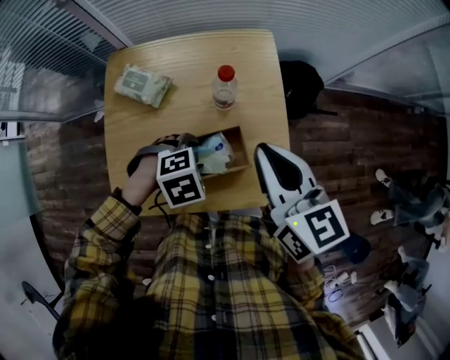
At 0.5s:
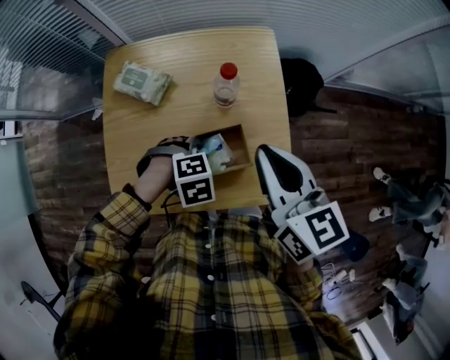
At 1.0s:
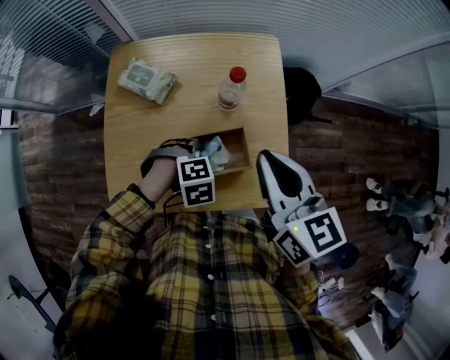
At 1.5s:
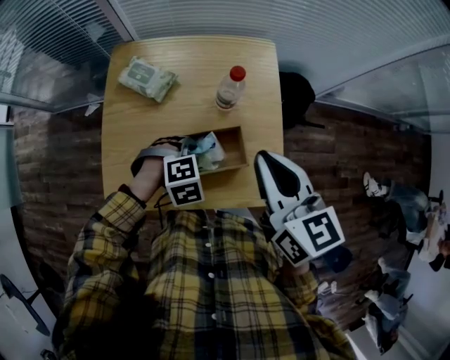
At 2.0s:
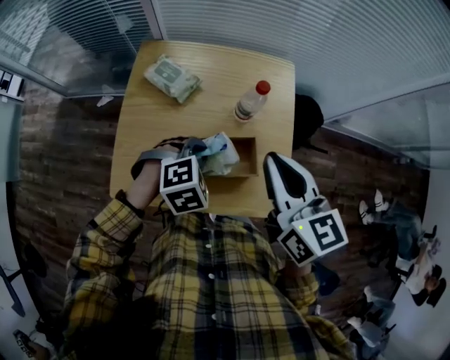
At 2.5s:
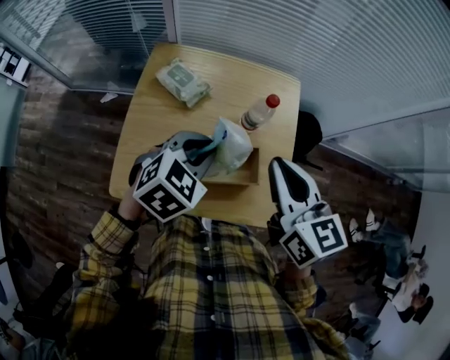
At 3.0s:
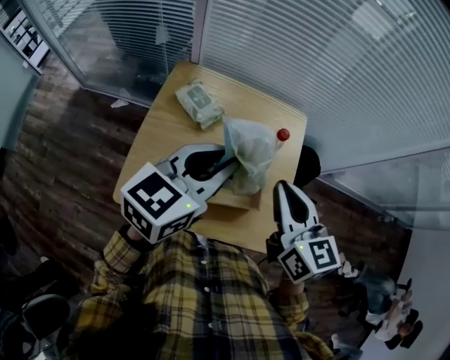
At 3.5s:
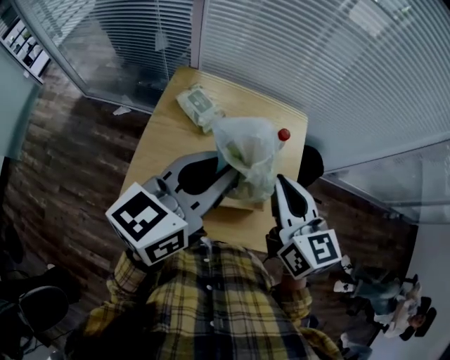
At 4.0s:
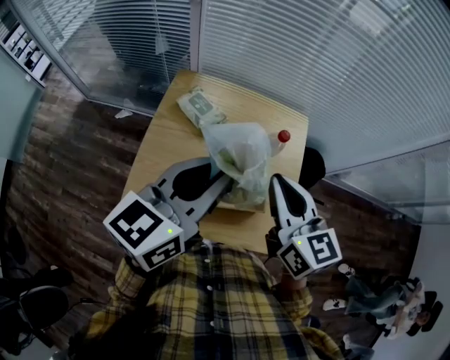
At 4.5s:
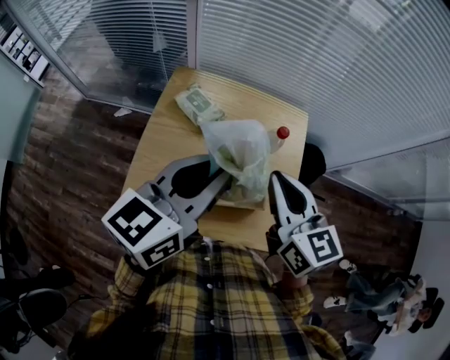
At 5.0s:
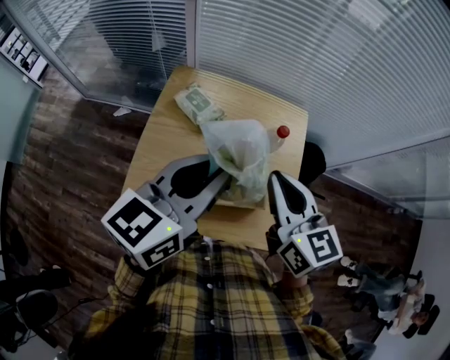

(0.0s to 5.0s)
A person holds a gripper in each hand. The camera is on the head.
0.0s - 2.5s: The left gripper travels upward by roughly 15 cm, tips its fingers upward by roughly 30 degrees, and closes up. Meanwhile the right gripper moves approximately 5 cm.
2.5s - 5.0s: The left gripper goes approximately 15 cm upward, and angles its fingers upward, by approximately 40 degrees.

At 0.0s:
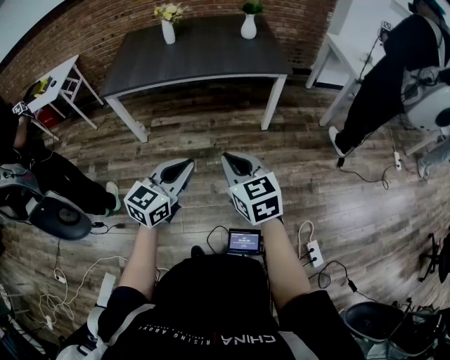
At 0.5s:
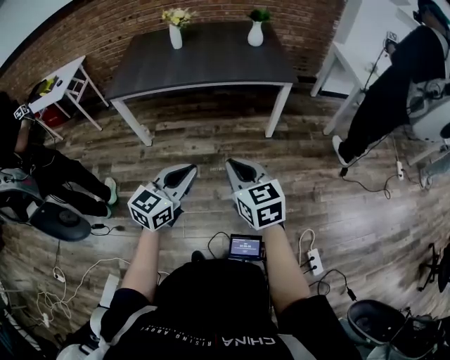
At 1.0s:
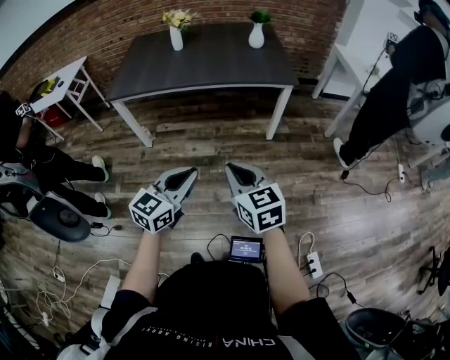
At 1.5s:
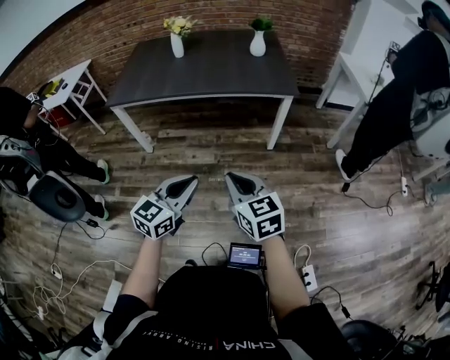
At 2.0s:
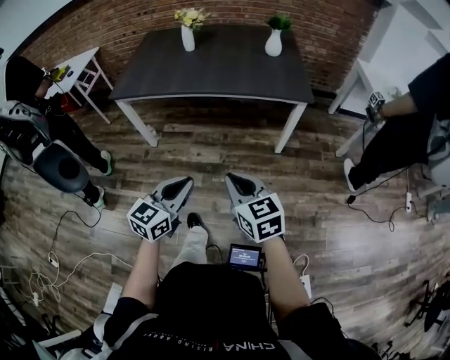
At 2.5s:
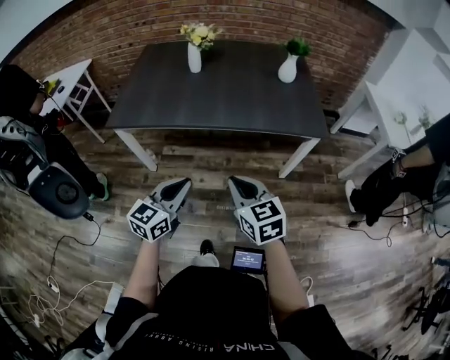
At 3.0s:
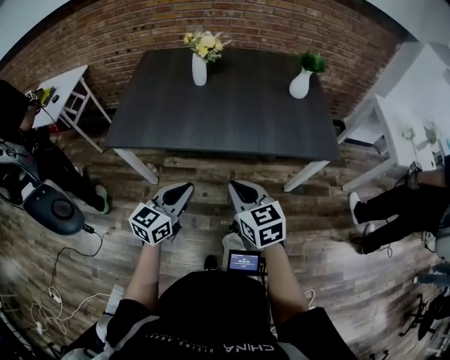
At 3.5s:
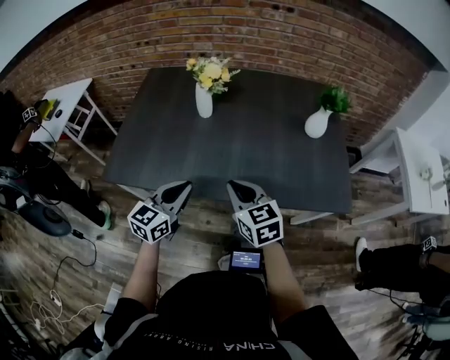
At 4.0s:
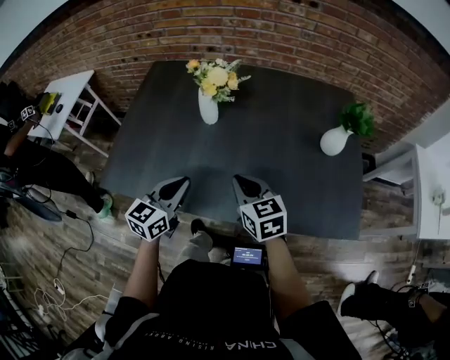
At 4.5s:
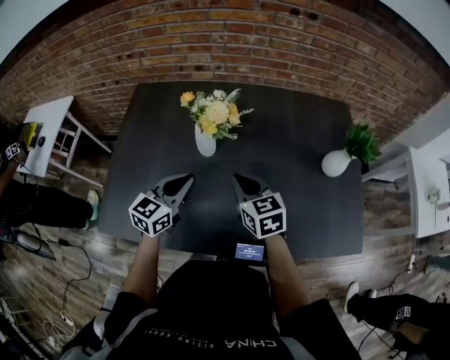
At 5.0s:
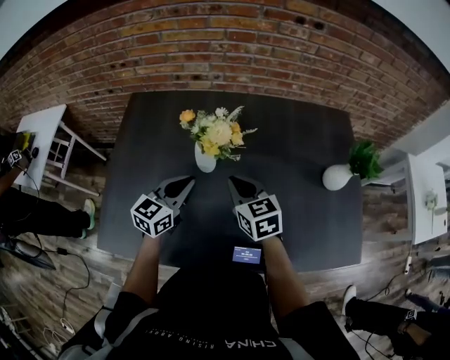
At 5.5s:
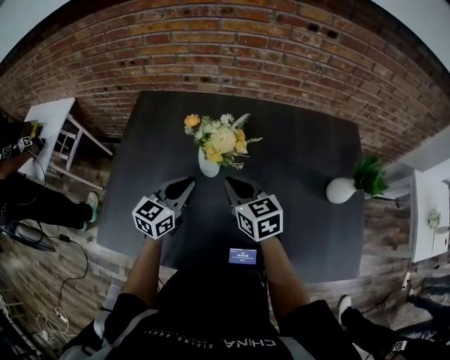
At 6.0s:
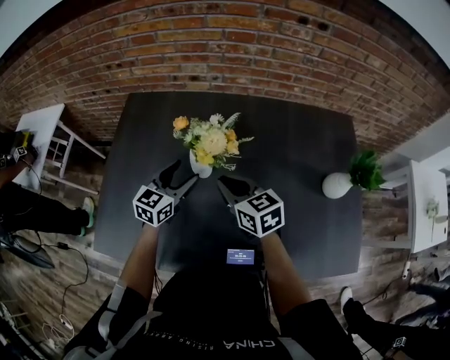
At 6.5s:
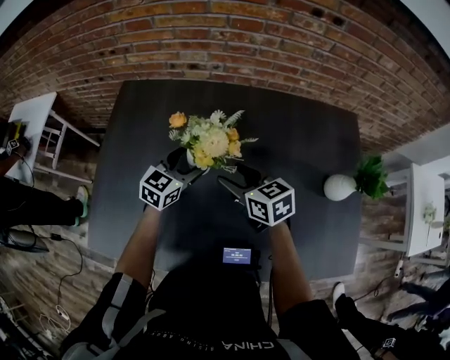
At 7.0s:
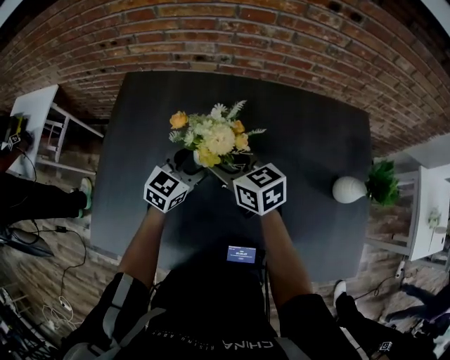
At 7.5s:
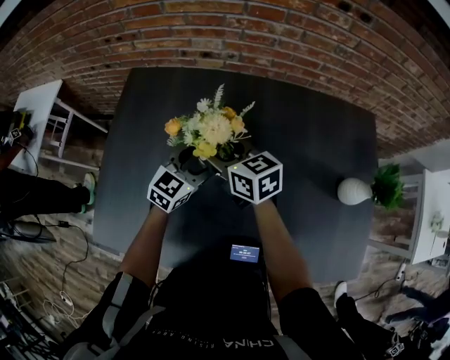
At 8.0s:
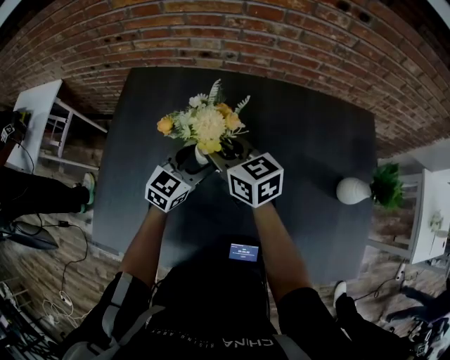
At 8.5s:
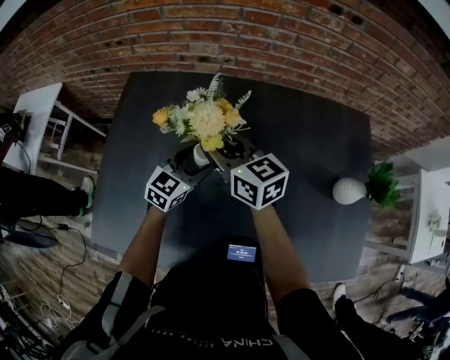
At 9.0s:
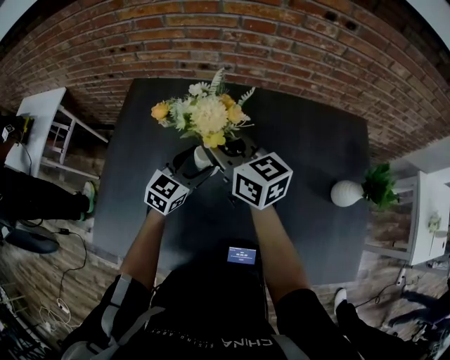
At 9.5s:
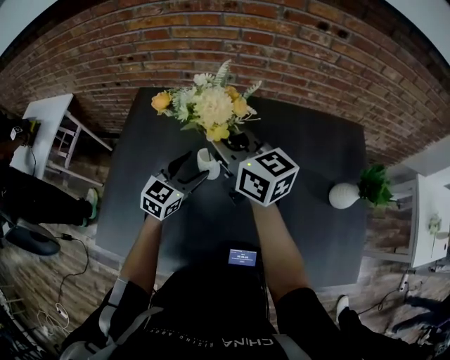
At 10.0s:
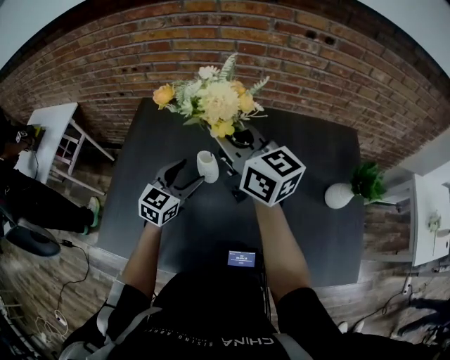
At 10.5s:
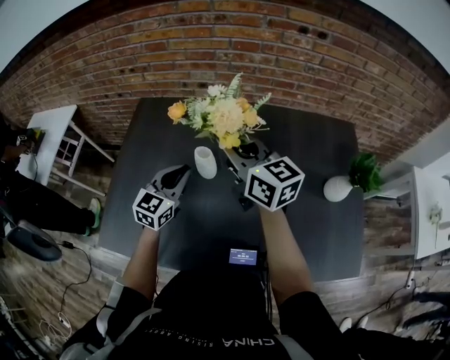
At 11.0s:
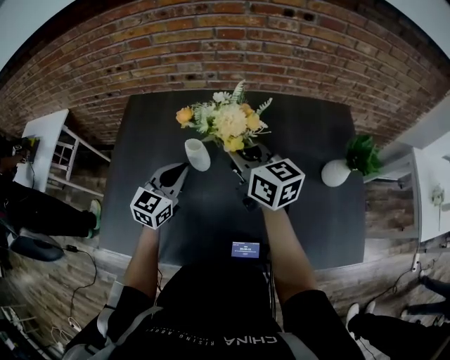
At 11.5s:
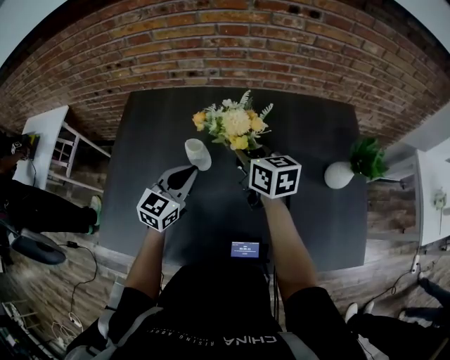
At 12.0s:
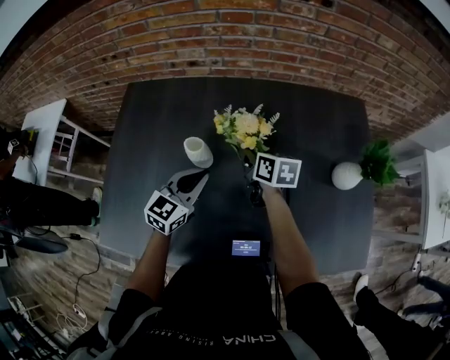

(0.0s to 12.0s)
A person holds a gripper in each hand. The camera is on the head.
0.0s - 2.0s: Both grippers travel together forward, roughly 10 cm.
2.0s - 4.0s: Both grippers are carried forward, approximately 70 cm.
4.0s - 6.0s: Both grippers move forward, some 25 cm. The left gripper opens its fingers.
6.0s - 8.0s: The right gripper travels forward and to the left by roughly 10 cm, and opens its fingers, while the left gripper moves some 5 cm.
8.0s - 10.0s: The right gripper moves upward, about 20 cm, and swivels some 20 degrees; the left gripper travels upward and backward by about 10 cm.
10.0s - 12.0s: The right gripper shifts roughly 30 cm downward and to the right, and angles its fingers downward, by some 40 degrees, while the left gripper moves to the right, roughly 5 cm, and closes up.

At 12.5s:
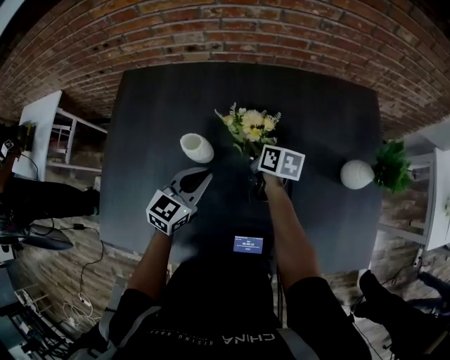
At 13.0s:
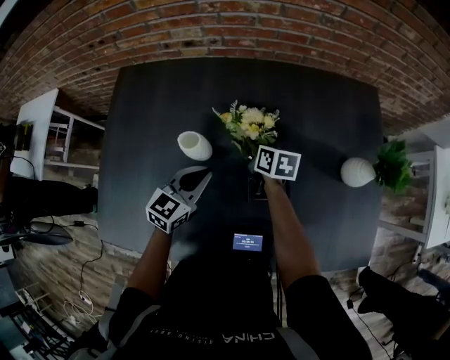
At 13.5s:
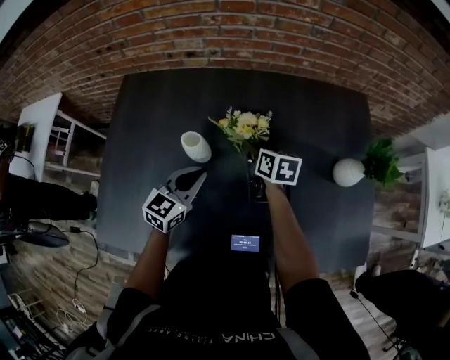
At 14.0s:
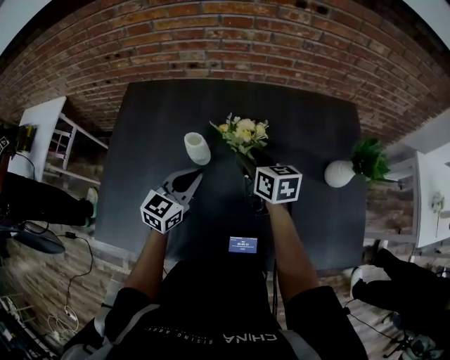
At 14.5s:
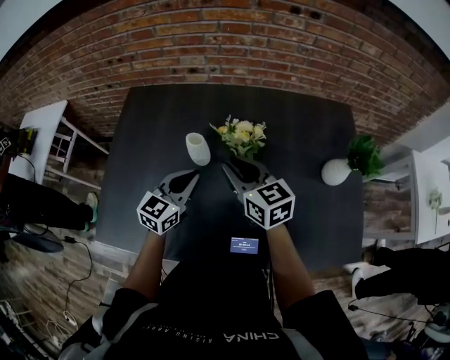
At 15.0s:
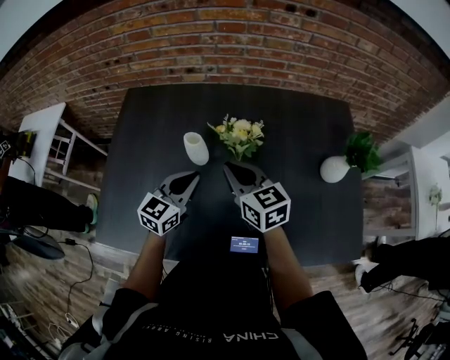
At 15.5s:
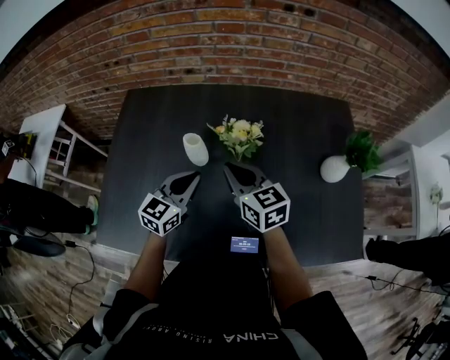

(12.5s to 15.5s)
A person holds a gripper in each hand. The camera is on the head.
12.5s - 14.0s: The left gripper changes place by approximately 5 cm. Meanwhile the right gripper moves upward and backward, about 15 cm, rotates about 30 degrees, and opens up.
14.0s - 15.5s: The right gripper heads backward and upward, covering approximately 10 cm, and closes.

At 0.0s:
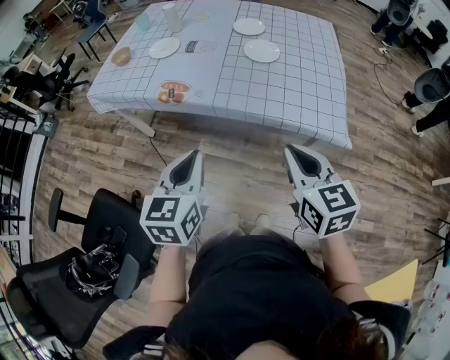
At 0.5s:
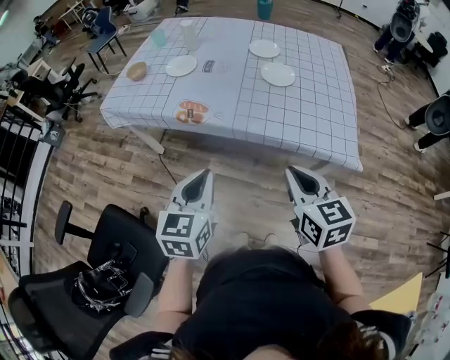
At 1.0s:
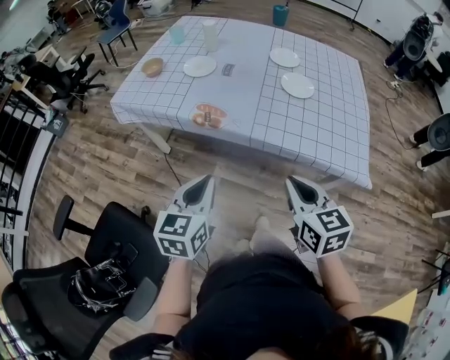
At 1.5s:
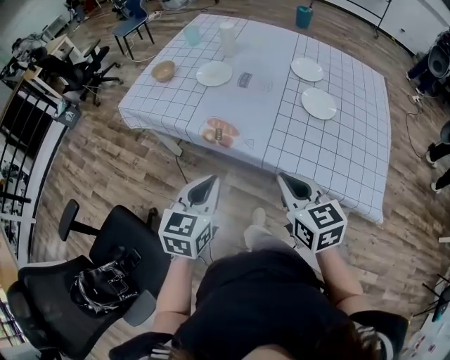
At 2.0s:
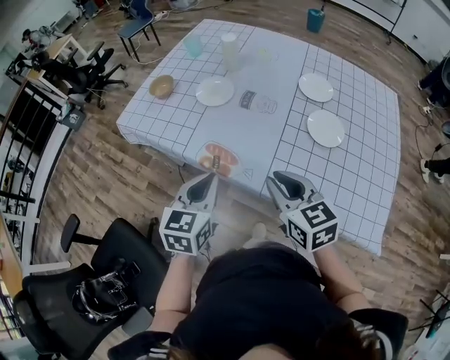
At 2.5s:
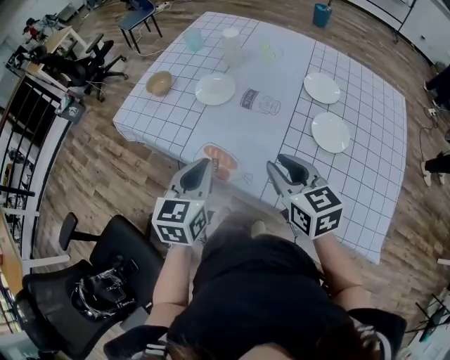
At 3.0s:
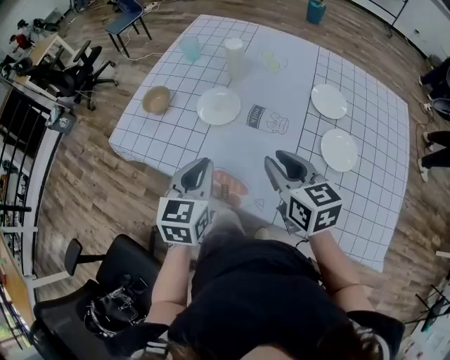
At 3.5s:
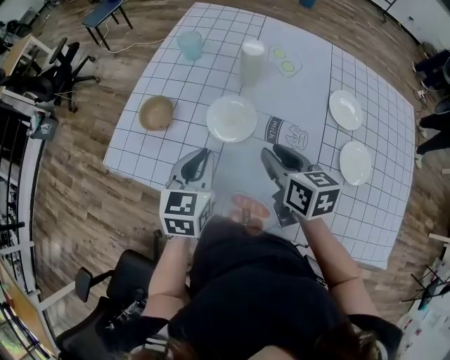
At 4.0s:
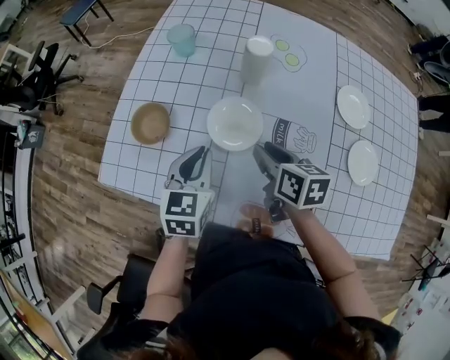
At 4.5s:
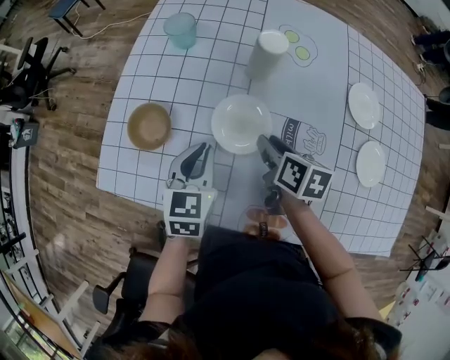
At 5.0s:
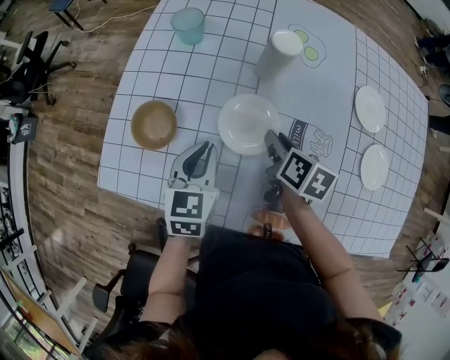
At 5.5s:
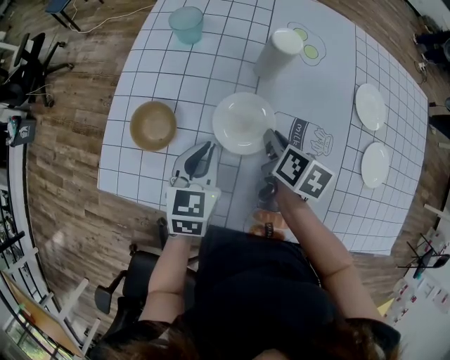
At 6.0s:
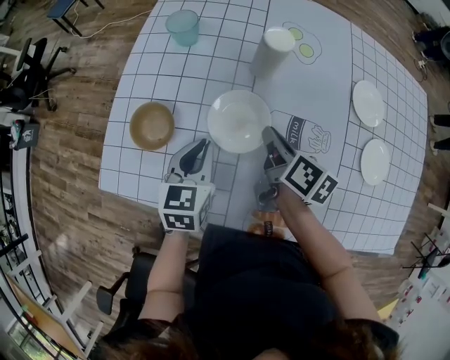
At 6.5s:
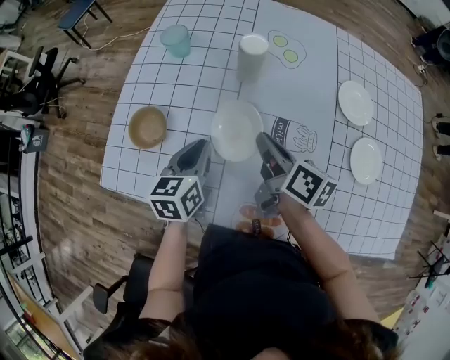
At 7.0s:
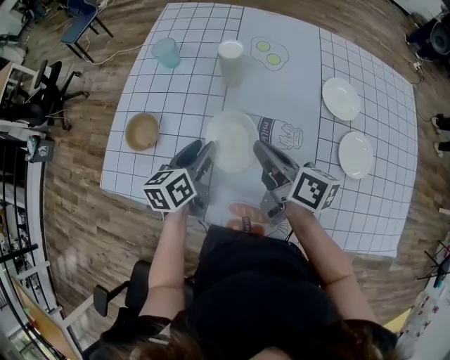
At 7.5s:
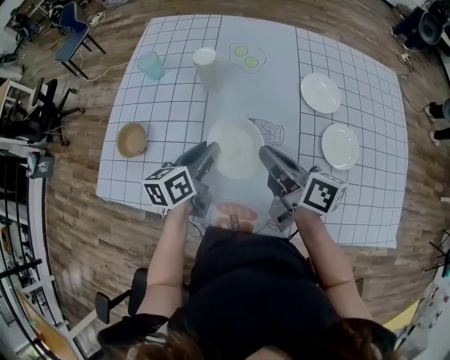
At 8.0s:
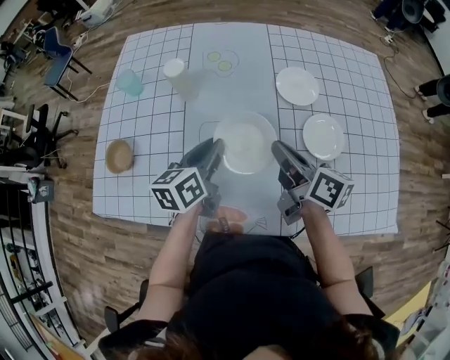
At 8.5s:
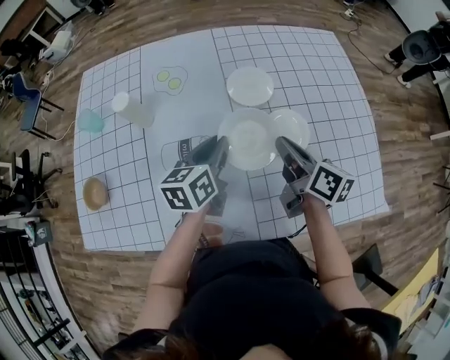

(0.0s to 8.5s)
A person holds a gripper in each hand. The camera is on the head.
0.0s - 2.0s: The left gripper travels forward by roughly 25 cm; the right gripper is displaced forward and to the left by roughly 30 cm, and rotates roughly 20 degrees.
2.0s - 4.0s: The two grippers go some 35 cm forward. The right gripper turns by some 40 degrees.
4.0s - 6.5s: The right gripper travels downward and back again, some 5 cm each way, turns by roughly 30 degrees, and closes.
6.5s - 8.5s: Both grippers move to the right, some 30 cm. The left gripper changes its angle by roughly 20 degrees, and opens, then closes again.
